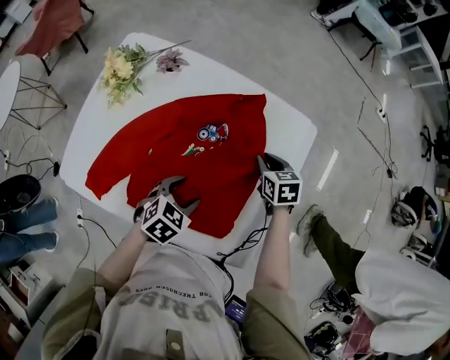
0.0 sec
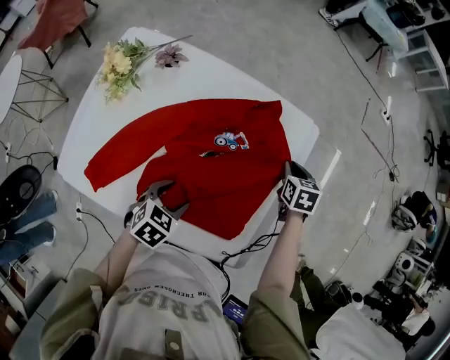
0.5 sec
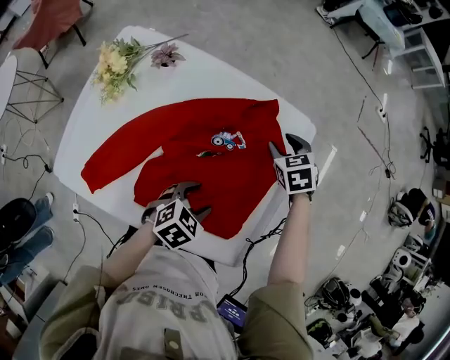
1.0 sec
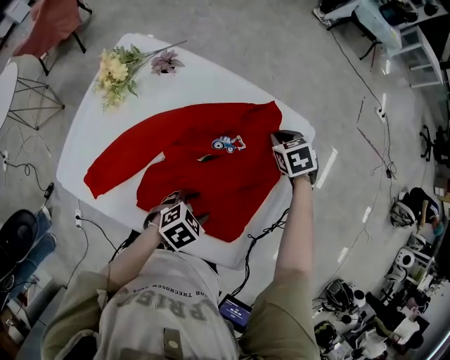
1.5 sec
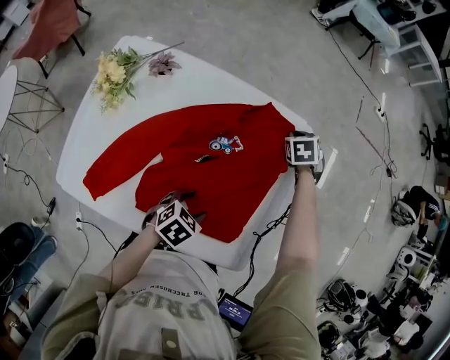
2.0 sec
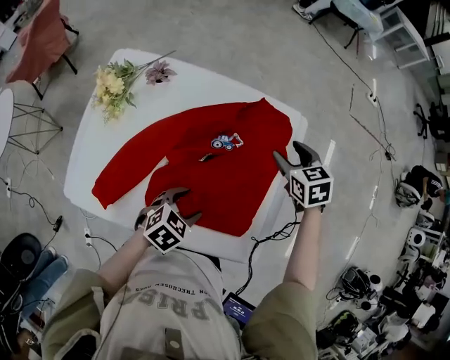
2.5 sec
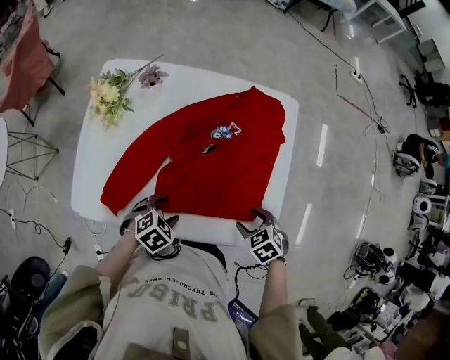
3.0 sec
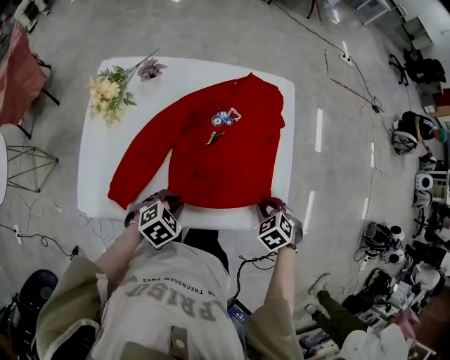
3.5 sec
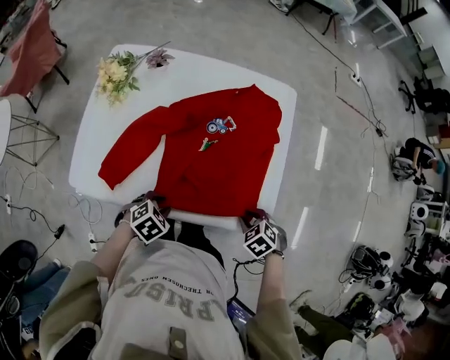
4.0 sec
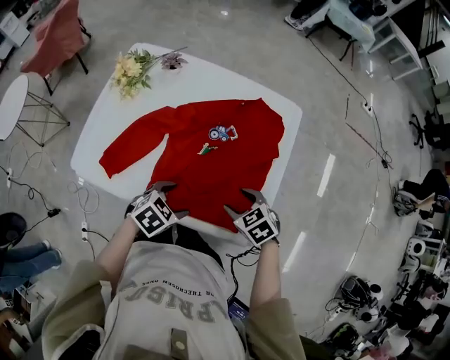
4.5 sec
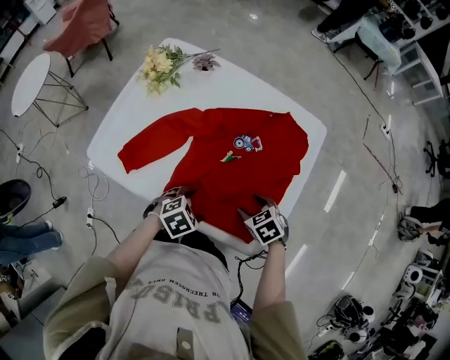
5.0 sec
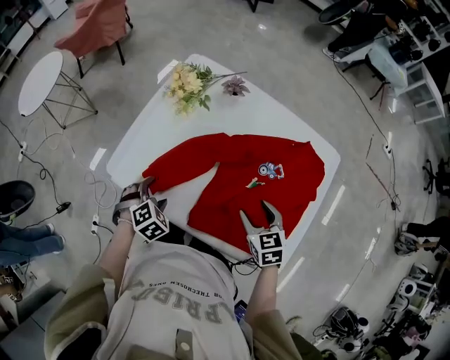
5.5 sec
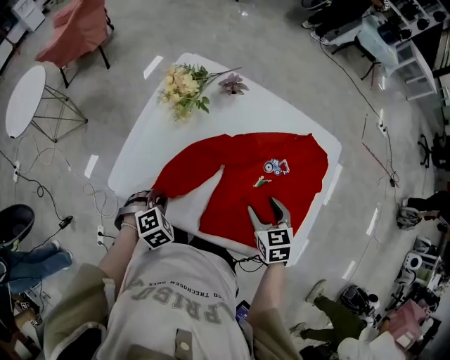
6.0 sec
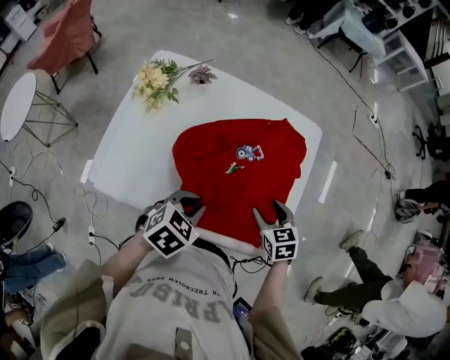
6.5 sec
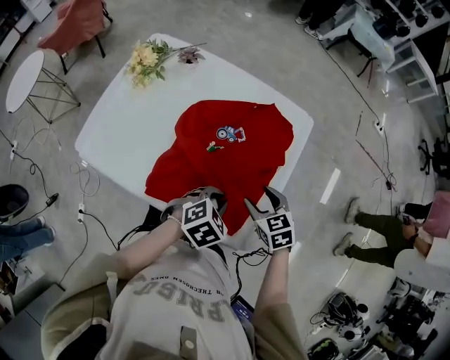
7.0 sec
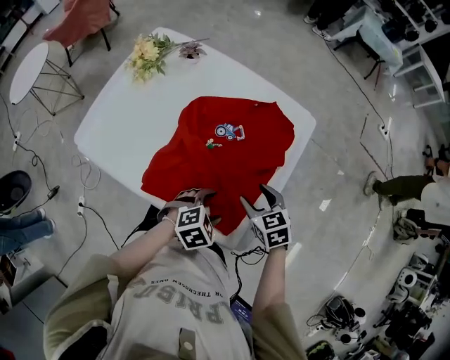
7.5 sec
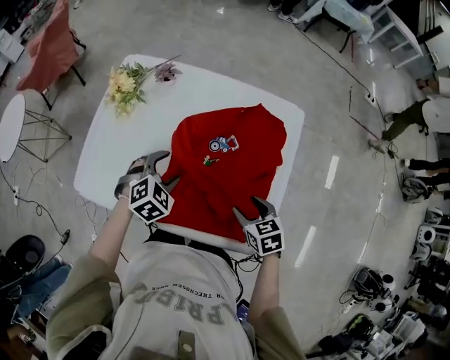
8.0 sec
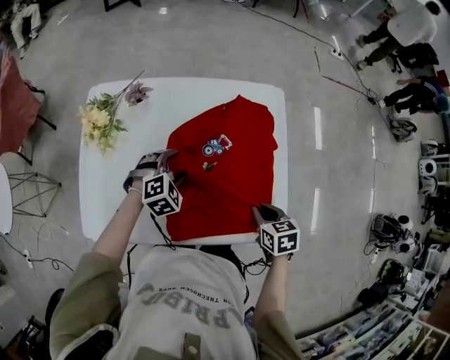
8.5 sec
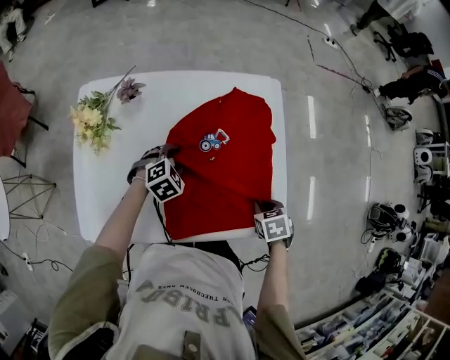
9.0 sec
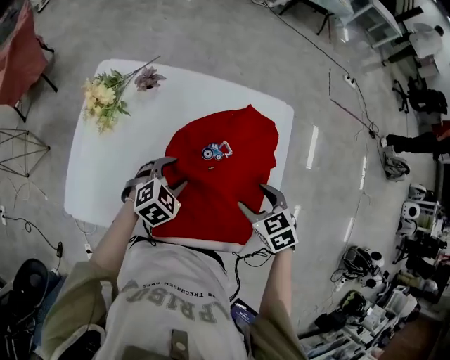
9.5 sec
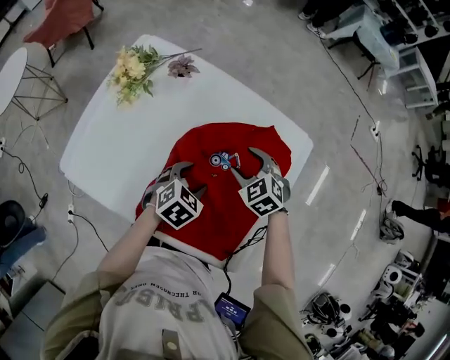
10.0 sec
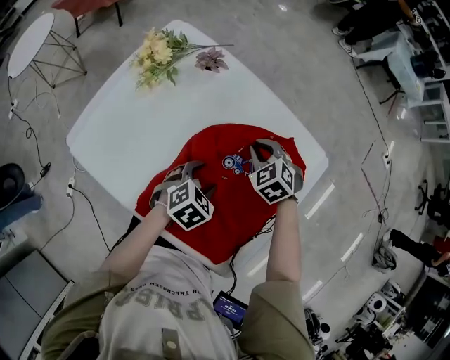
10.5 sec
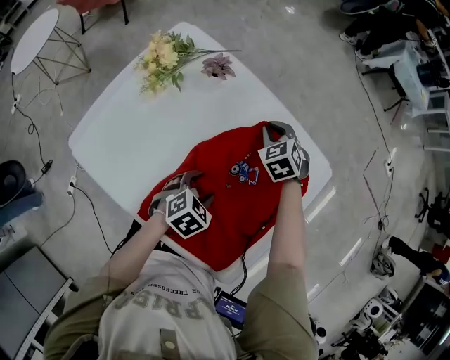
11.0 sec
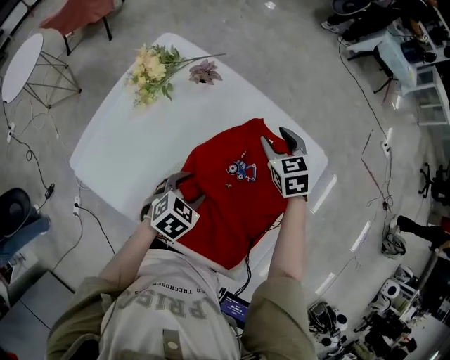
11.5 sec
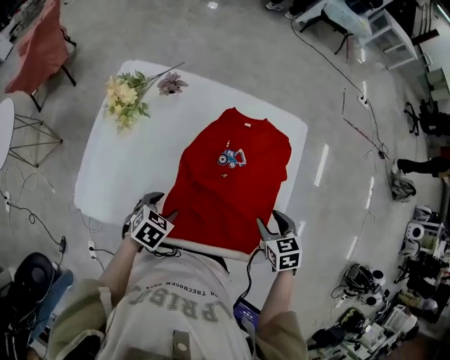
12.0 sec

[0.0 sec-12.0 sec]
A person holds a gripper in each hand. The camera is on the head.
0.0 sec to 2.0 sec: The right gripper changes place by approximately 15 cm, and turns by roughly 30 degrees, while the left gripper changes place by about 5 cm.
2.0 sec to 4.0 sec: The left gripper shifts by some 20 cm, swivels about 20 degrees, and closes up. The right gripper goes upward and returns, approximately 10 cm each way, rotates approximately 30 degrees, and opens and closes again.
4.0 sec to 6.0 sec: The right gripper goes up and down, about 10 cm each way, reversing 2 times, rotates about 30 degrees, and opens up. Meanwhile the left gripper changes place by approximately 20 cm, rotates about 20 degrees, and opens, then closes again.
6.0 sec to 8.0 sec: The left gripper shifts about 25 cm to the right and forward, and opens up; the right gripper goes roughly 15 cm to the right.
8.0 sec to 10.0 sec: The right gripper travels upward and back again, about 5 cm each way, twists about 40 degrees counterclockwise, seen from behind, and closes, then reopens, while the left gripper changes place by about 10 cm, and turns by some 30 degrees.
10.0 sec to 12.0 sec: The left gripper changes place by roughly 15 cm. Meanwhile the right gripper ends up approximately 20 cm from where it was, rolls clockwise, seen from behind, by roughly 40 degrees, and closes and opens again.

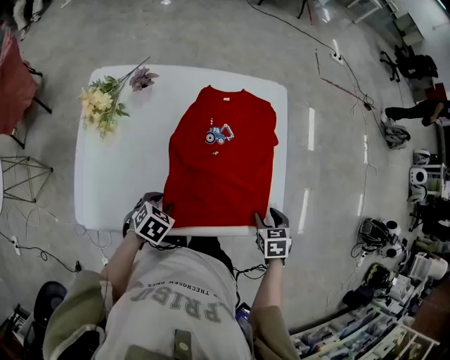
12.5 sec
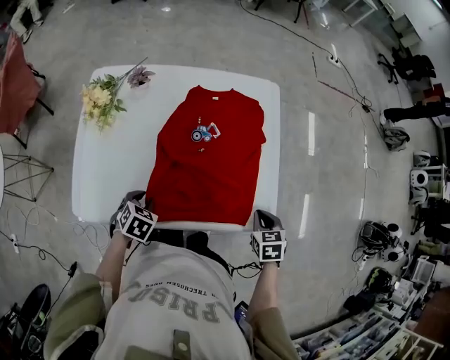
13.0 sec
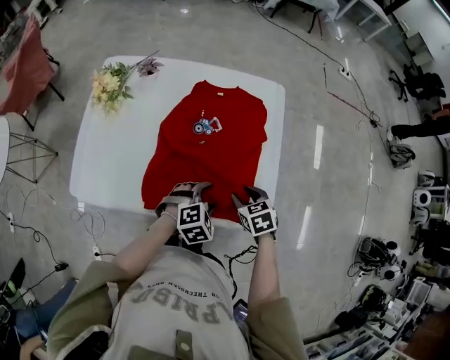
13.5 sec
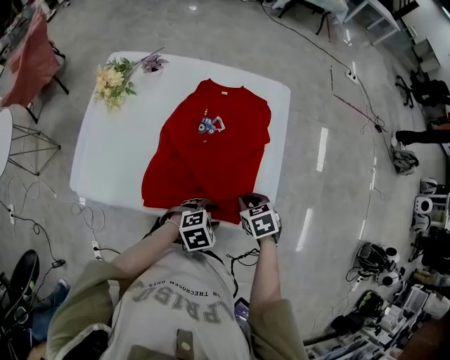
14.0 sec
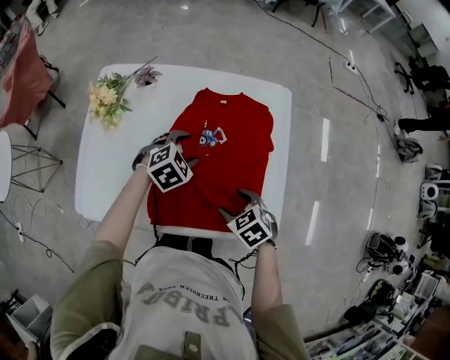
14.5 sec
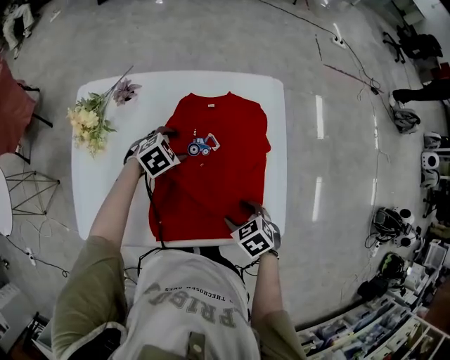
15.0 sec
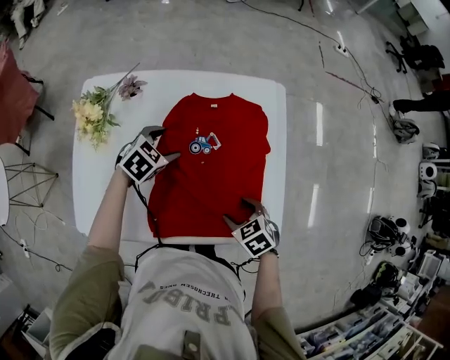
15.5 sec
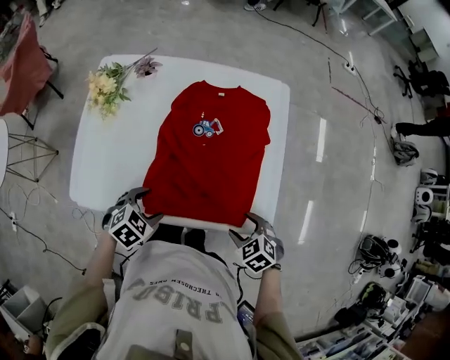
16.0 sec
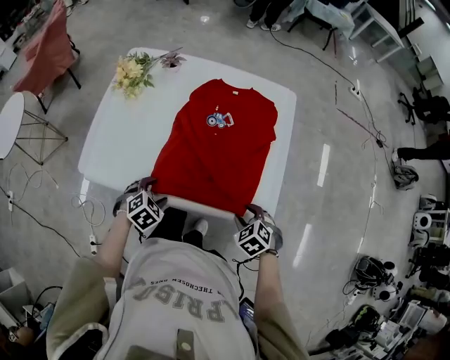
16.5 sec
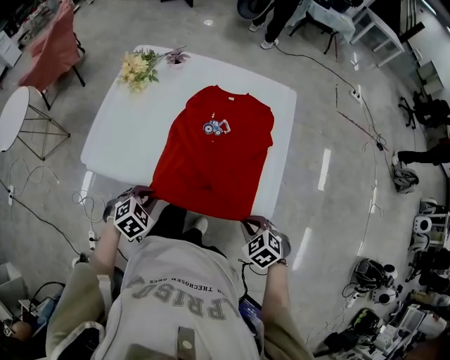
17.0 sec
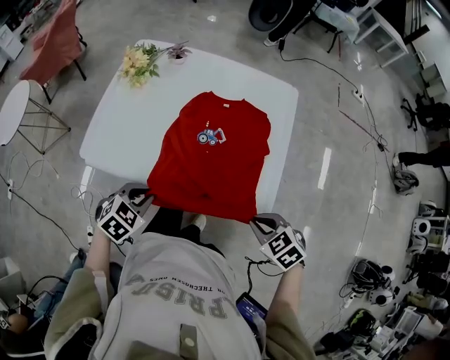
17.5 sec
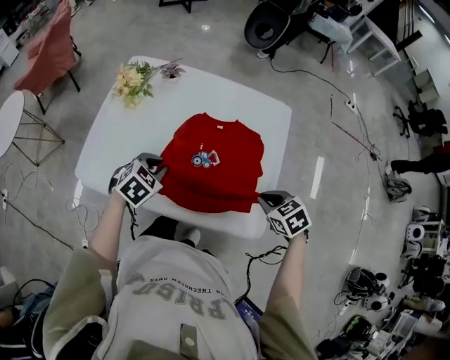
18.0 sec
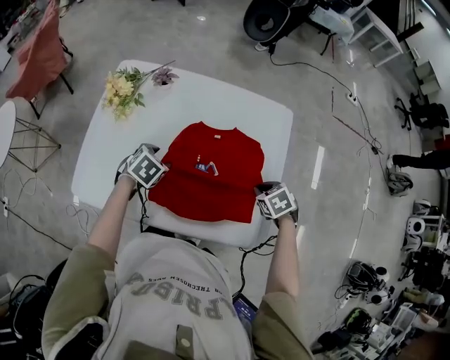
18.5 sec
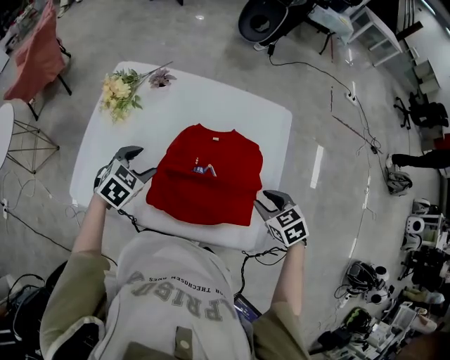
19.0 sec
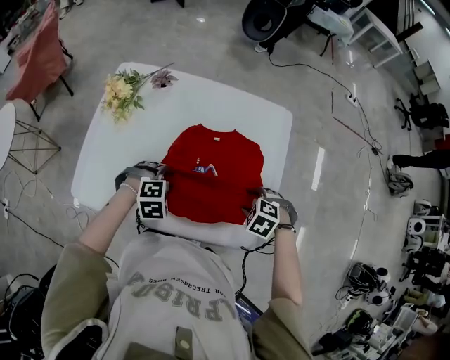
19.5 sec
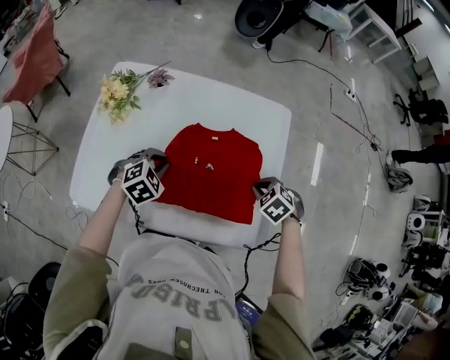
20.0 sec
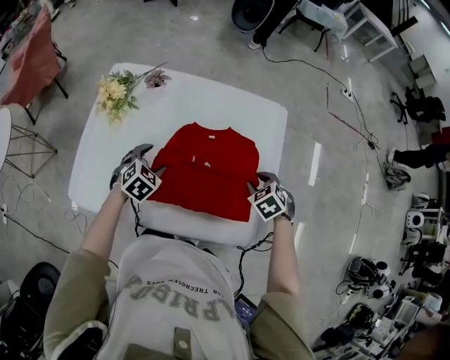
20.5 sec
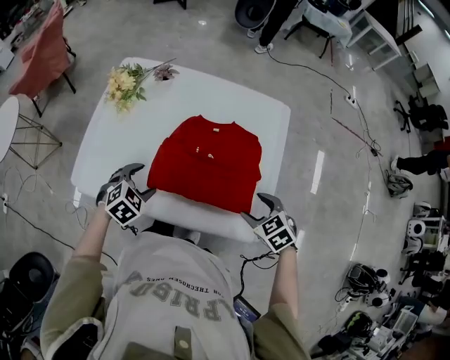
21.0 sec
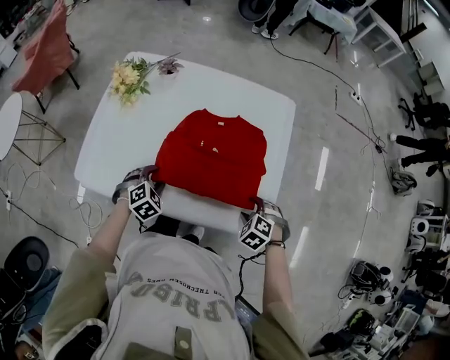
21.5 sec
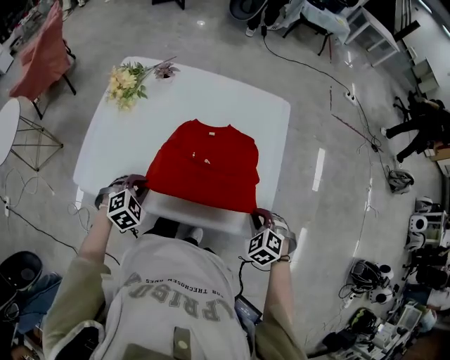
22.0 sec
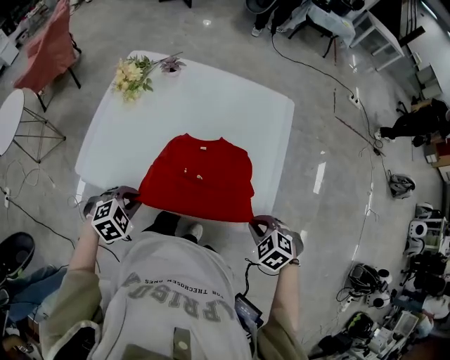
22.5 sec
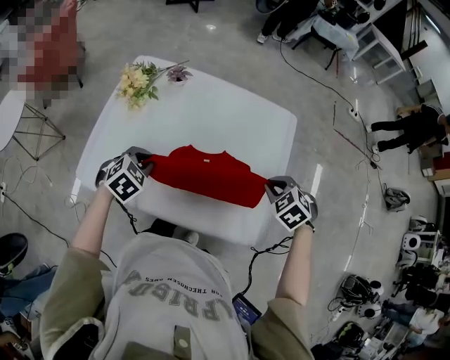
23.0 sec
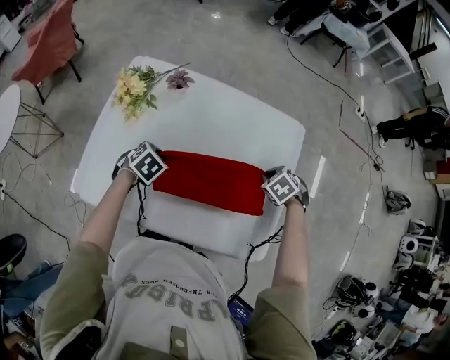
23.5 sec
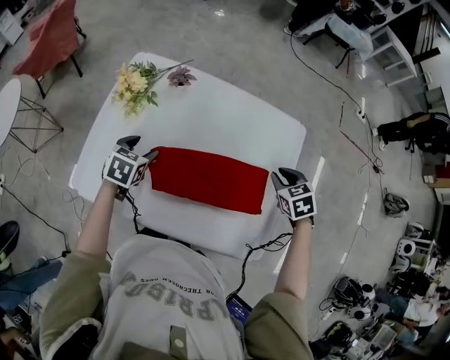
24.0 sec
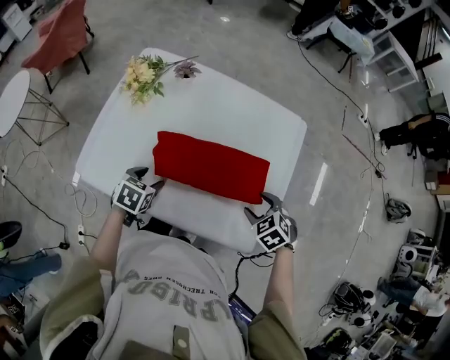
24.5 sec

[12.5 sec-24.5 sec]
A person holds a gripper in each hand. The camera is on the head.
12.5 sec to 14.5 sec: The right gripper changes place by roughly 15 cm, swivels roughly 40 degrees, and closes and opens again. Meanwhile the left gripper ends up about 20 cm from where it was, and swivels roughly 30 degrees.
14.5 sec to 16.5 sec: The right gripper travels backward and to the right by approximately 15 cm, and swivels some 20 degrees. Meanwhile the left gripper moves backward, approximately 25 cm.
16.5 sec to 18.5 sec: Both grippers travel together forward, roughly 20 cm. The left gripper closes and opens again, while the right gripper closes up.
18.5 sec to 20.5 sec: The left gripper closes and opens again.
20.5 sec to 22.5 sec: Both grippers move backward, roughly 20 cm. The right gripper opens and closes again; the left gripper closes its fingers.
22.5 sec to 24.5 sec: The left gripper swings up and down, approximately 10 cm each way, with 2 reversals, twists approximately 50 degrees counterclockwise, seen from behind, and opens its fingers. The right gripper goes up and down, about 10 cm each way, reversing 2 times, and opens.

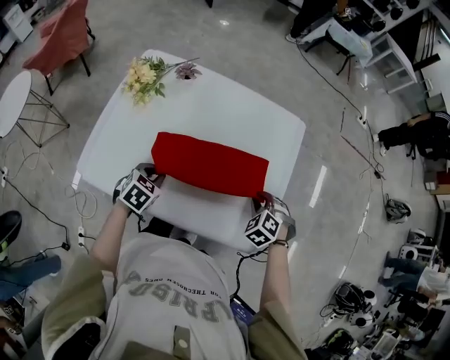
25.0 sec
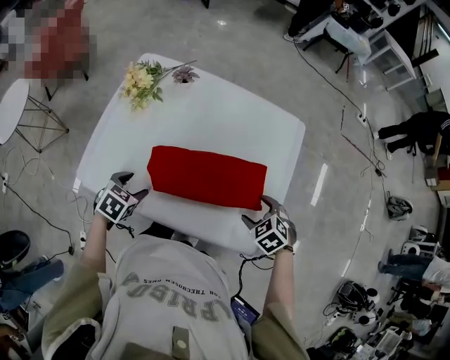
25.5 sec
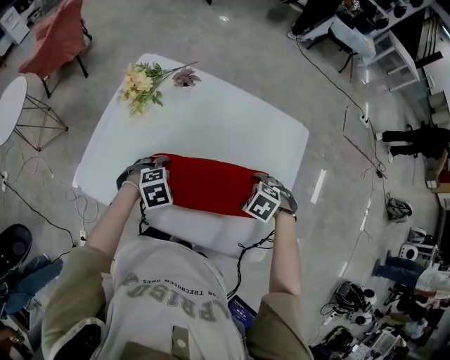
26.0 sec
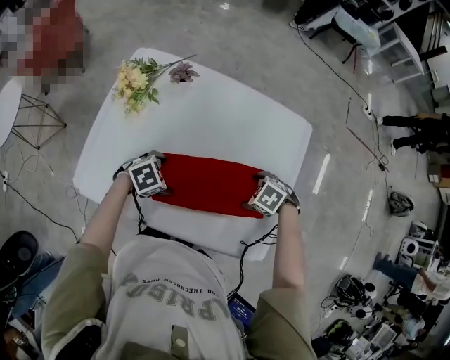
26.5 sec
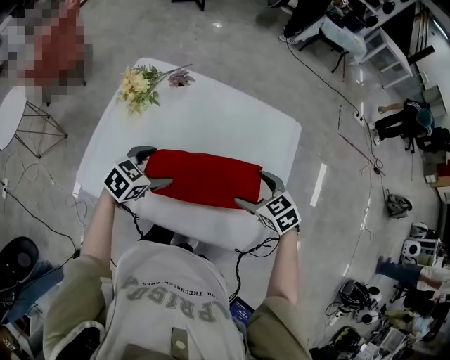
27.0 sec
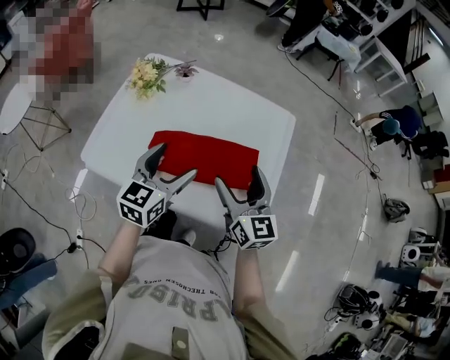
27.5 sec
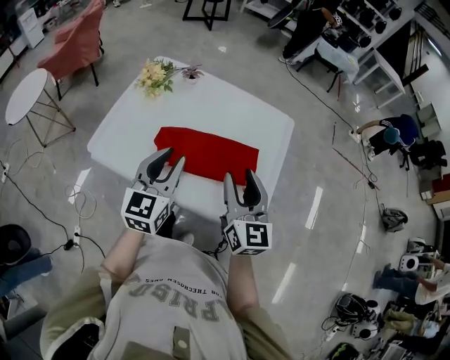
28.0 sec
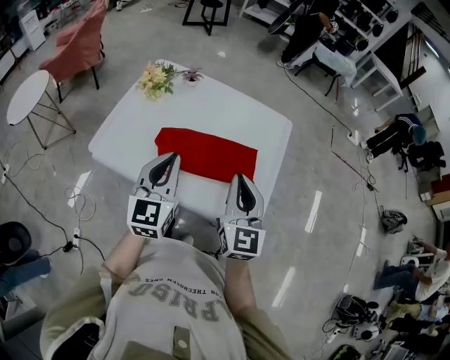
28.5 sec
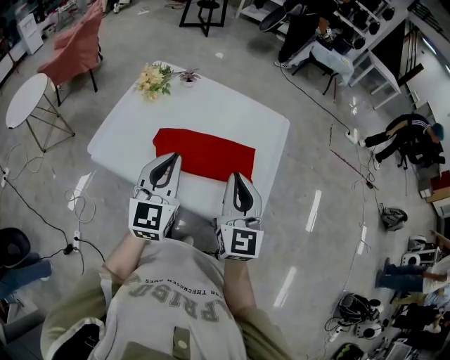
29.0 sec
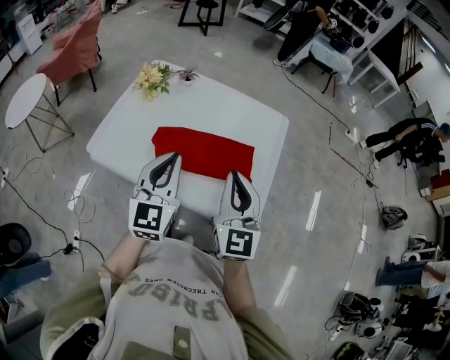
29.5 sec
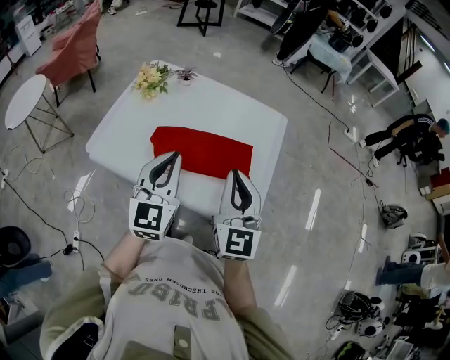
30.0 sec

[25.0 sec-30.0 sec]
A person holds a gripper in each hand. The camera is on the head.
25.0 sec to 27.5 sec: The grippers both shift upward by approximately 20 cm. The right gripper angles its fingers upward, by approximately 60 degrees, and opens. The left gripper tips its fingers upward by some 40 degrees, and opens up.
27.5 sec to 30.0 sec: The two grippers go approximately 10 cm backward and upward. The right gripper swivels roughly 20 degrees, and closes its fingers, while the left gripper turns by some 30 degrees, and closes its fingers.
